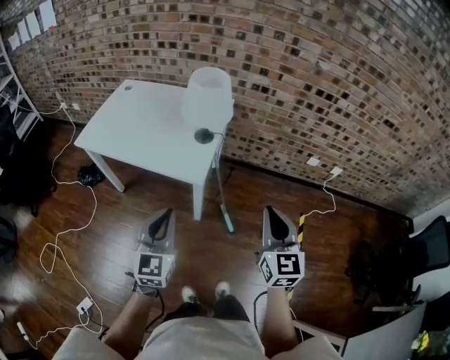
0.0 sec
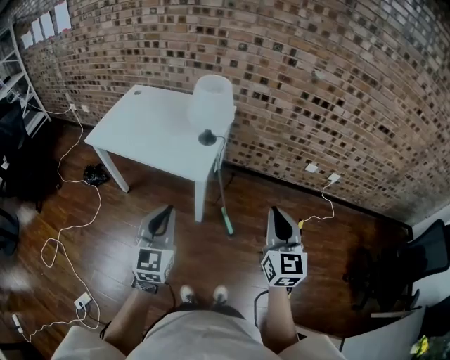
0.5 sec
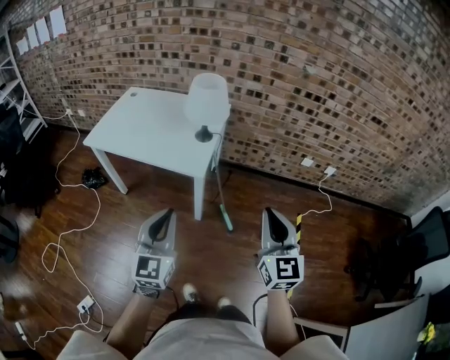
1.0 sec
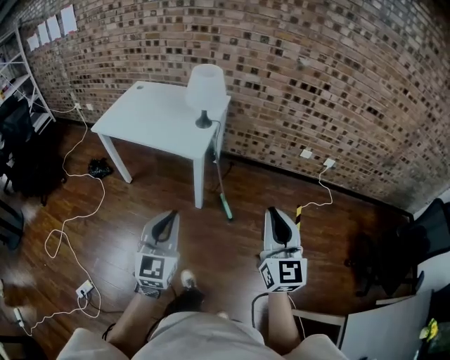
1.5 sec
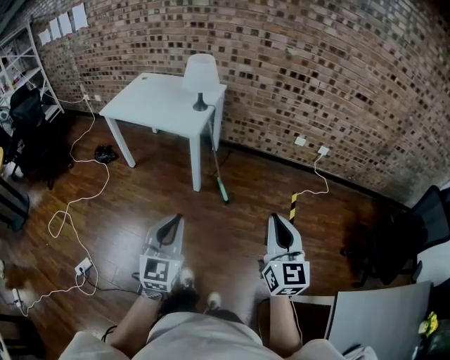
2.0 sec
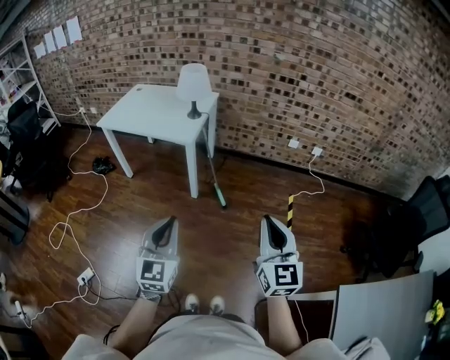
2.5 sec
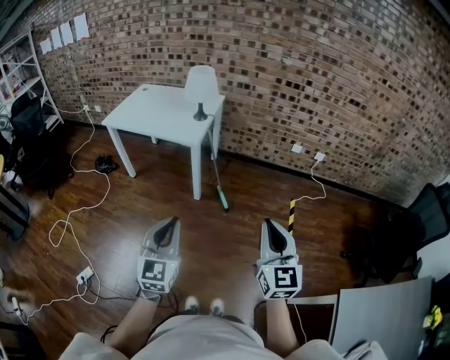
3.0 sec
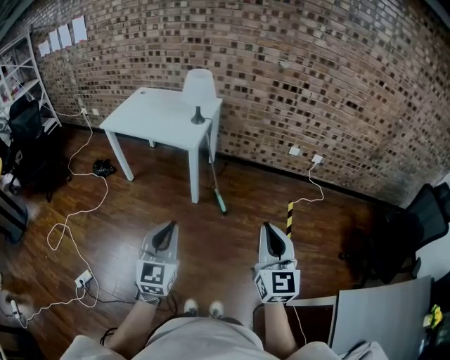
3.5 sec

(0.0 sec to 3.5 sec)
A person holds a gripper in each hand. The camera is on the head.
0.0 sec - 2.0 sec: Both grippers travel together backward, roughly 40 cm.
2.0 sec - 3.5 sec: The right gripper changes place by some 5 cm.

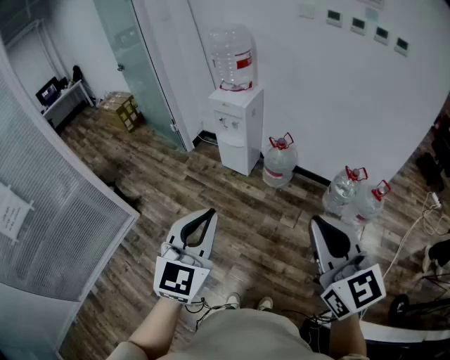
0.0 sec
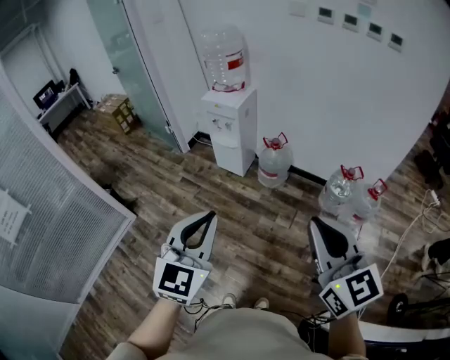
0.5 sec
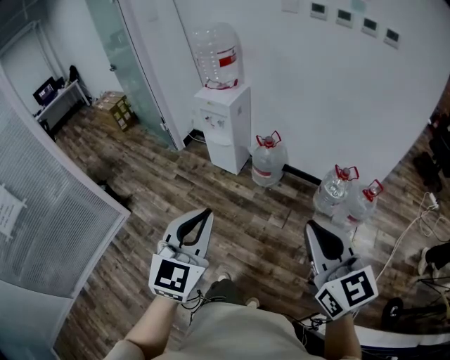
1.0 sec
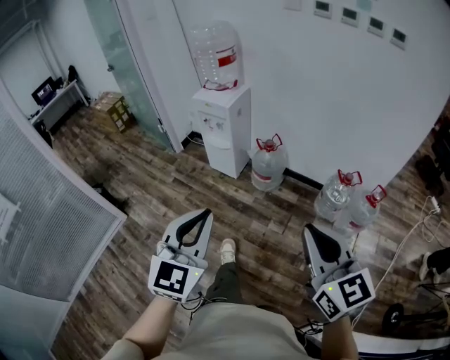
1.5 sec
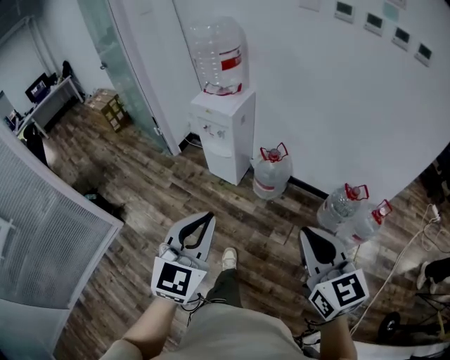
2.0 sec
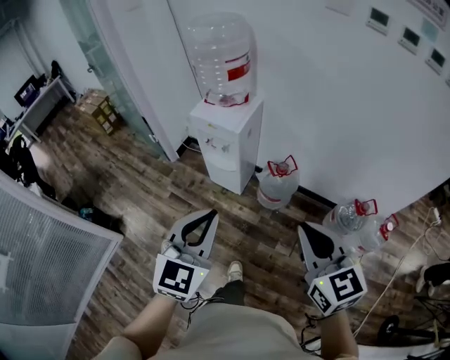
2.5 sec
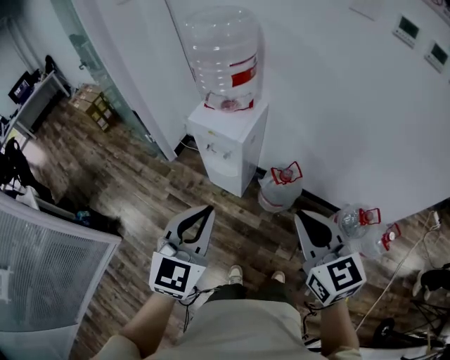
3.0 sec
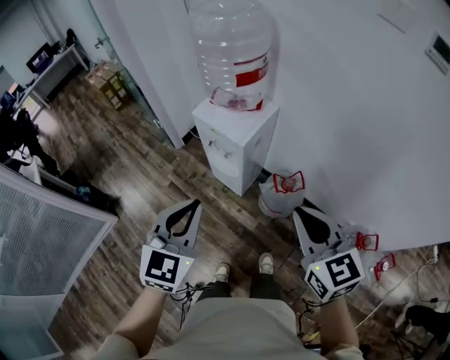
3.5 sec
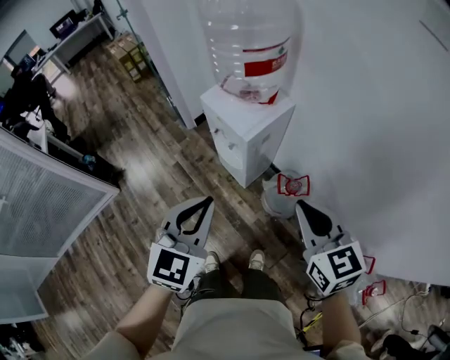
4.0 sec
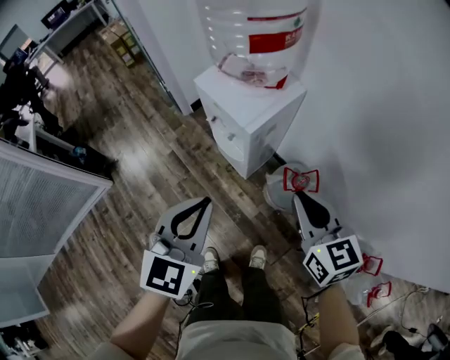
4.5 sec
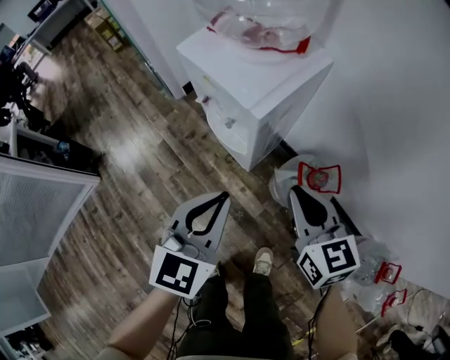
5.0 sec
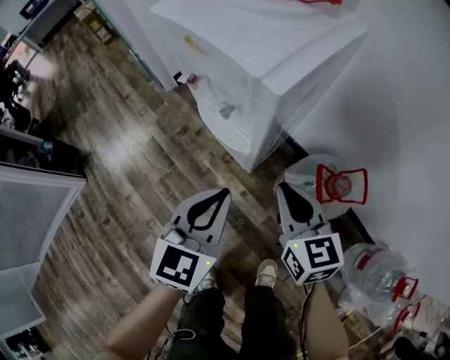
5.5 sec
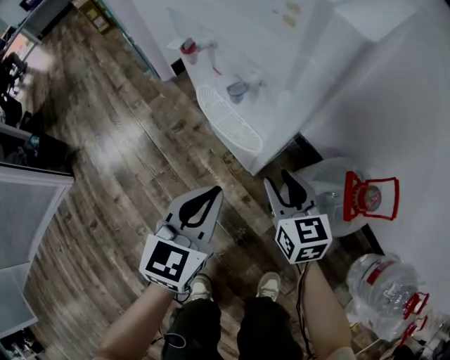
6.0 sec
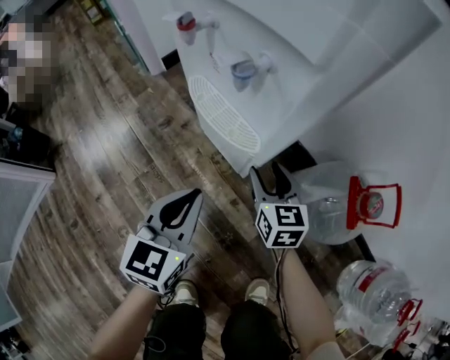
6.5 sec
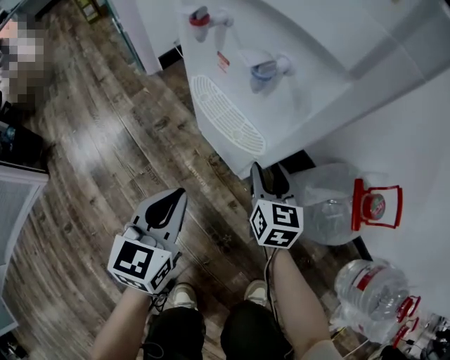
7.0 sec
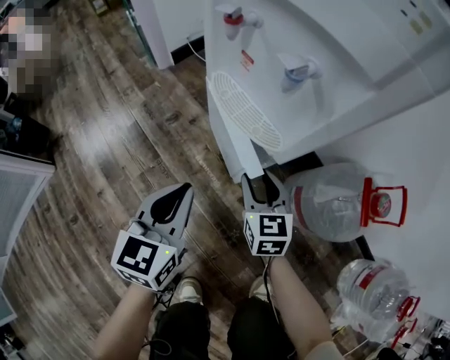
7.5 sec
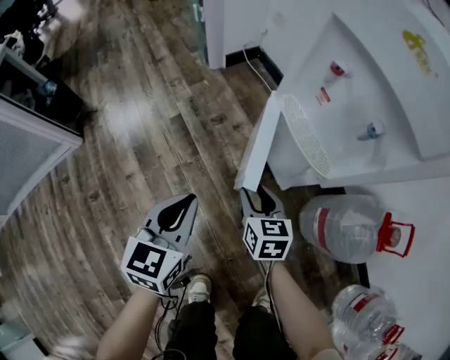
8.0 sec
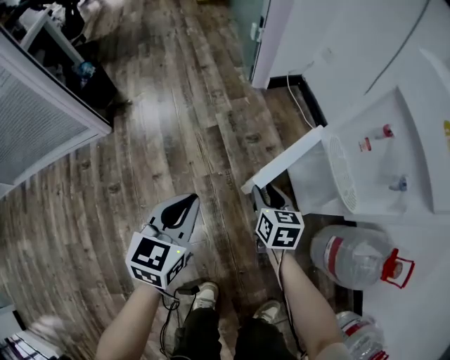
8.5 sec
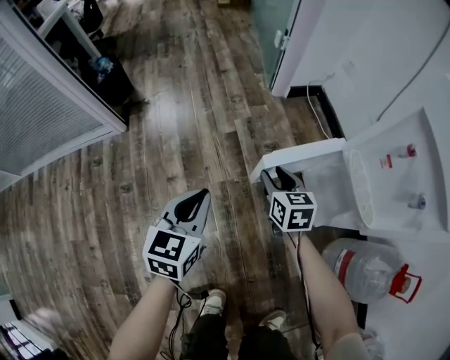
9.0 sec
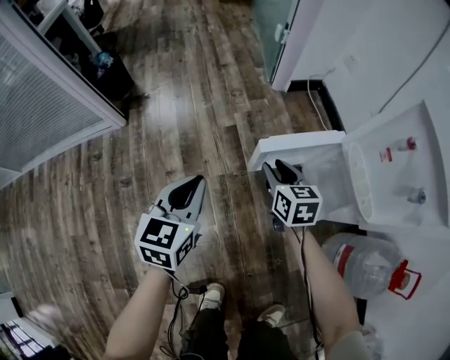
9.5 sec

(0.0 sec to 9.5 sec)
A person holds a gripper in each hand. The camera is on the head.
0.0 sec - 2.0 sec: The left gripper travels forward by approximately 20 cm. The right gripper heads forward and downward, covering approximately 20 cm.
2.0 sec - 4.0 sec: The two grippers go about 40 cm forward. The right gripper rotates roughly 20 degrees.
4.0 sec - 5.5 sec: The grippers both shift downward by roughly 40 cm.
5.5 sec - 7.5 sec: The two grippers go some 25 cm downward and to the left. The right gripper opens its fingers.
7.5 sec - 9.5 sec: The left gripper moves approximately 30 cm, and changes its angle by about 30 degrees. The right gripper changes place by roughly 30 cm, and changes its angle by some 30 degrees.

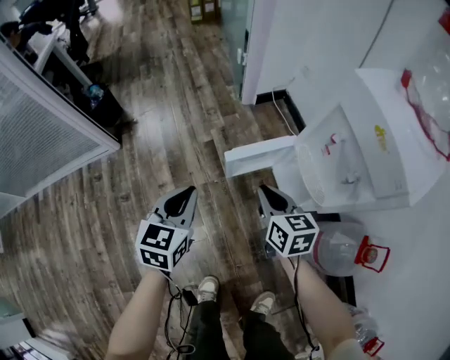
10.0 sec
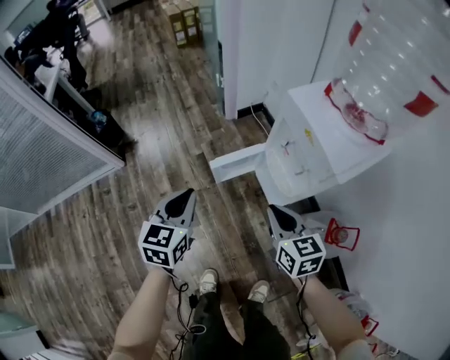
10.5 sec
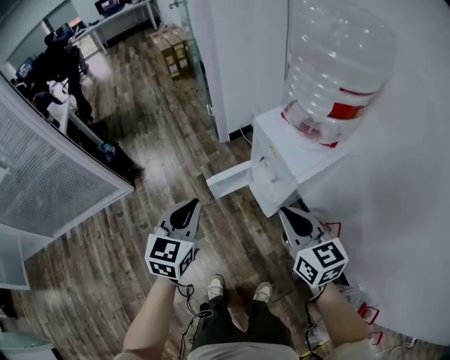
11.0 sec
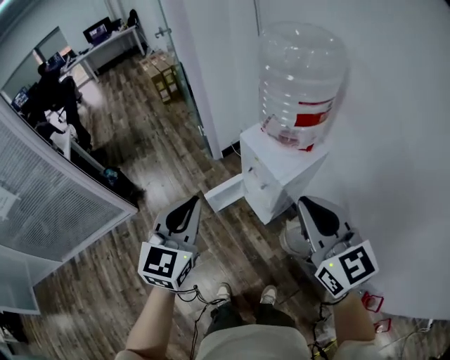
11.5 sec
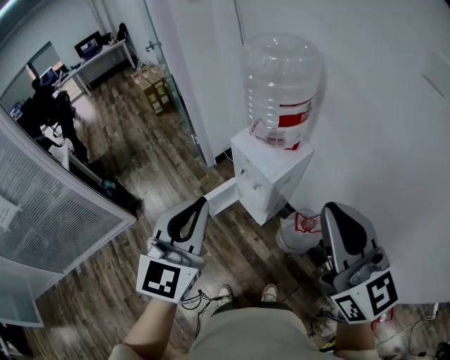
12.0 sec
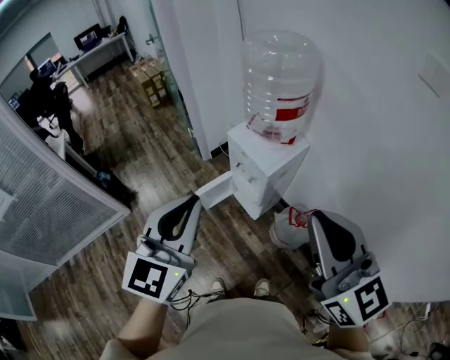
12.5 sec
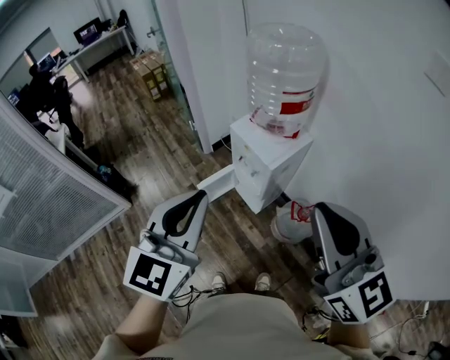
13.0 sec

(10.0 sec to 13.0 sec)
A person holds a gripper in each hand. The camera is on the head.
10.0 sec - 11.5 sec: Both grippers move upward, roughly 50 cm. The right gripper changes its angle by roughly 30 degrees; the left gripper swivels some 30 degrees.
11.5 sec - 13.0 sec: The right gripper shifts roughly 15 cm backward and upward. Meanwhile the left gripper shifts approximately 15 cm upward and backward.

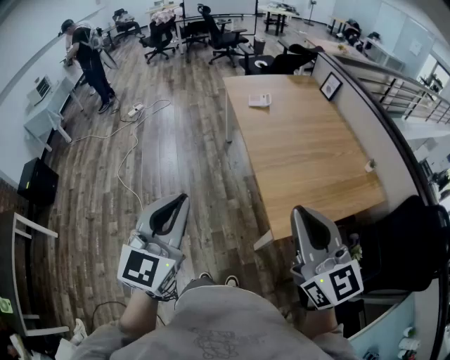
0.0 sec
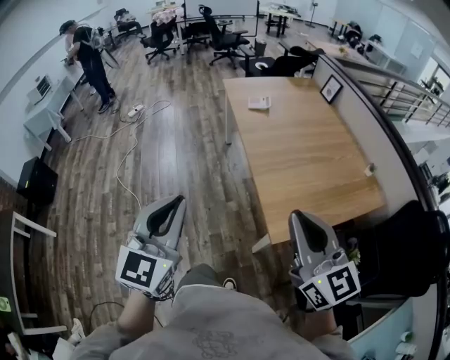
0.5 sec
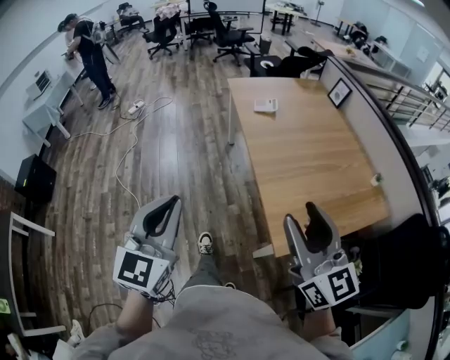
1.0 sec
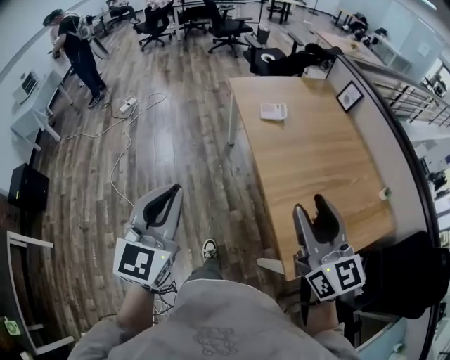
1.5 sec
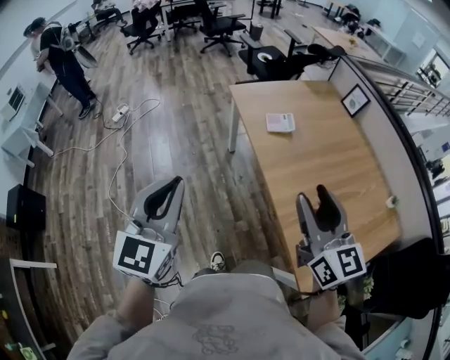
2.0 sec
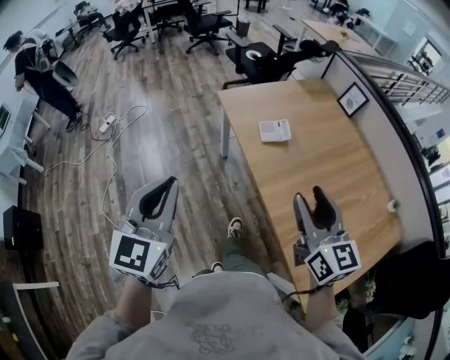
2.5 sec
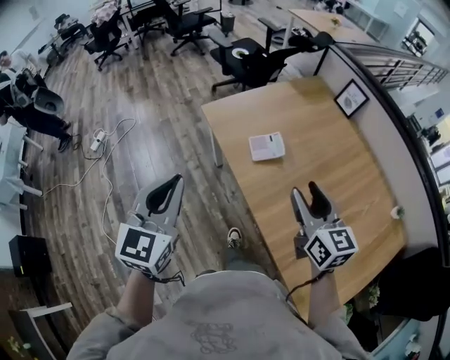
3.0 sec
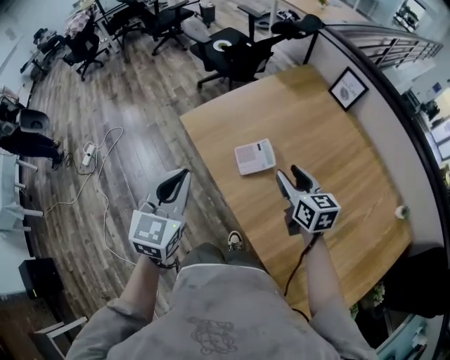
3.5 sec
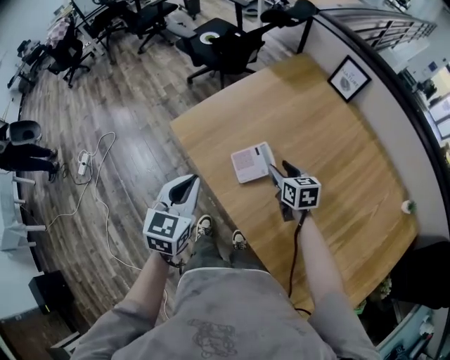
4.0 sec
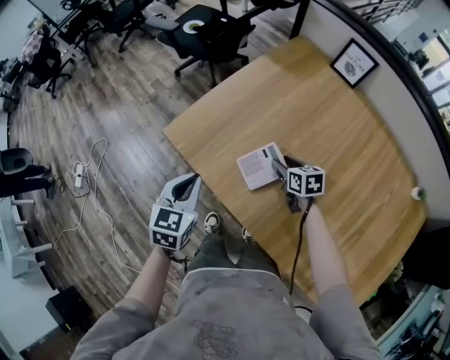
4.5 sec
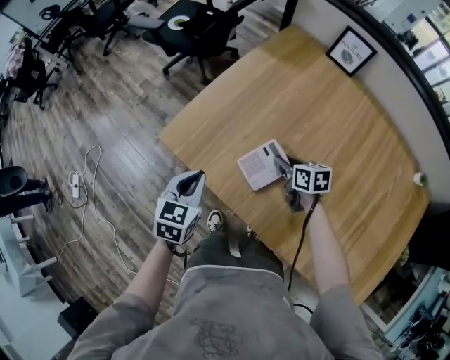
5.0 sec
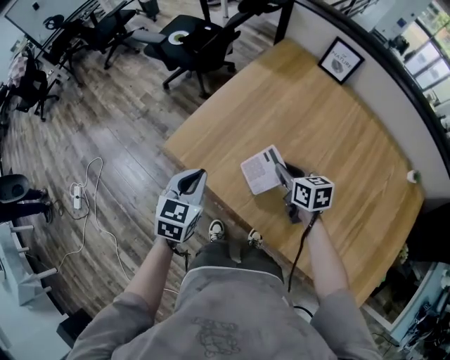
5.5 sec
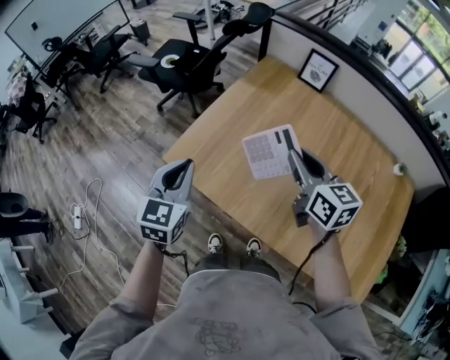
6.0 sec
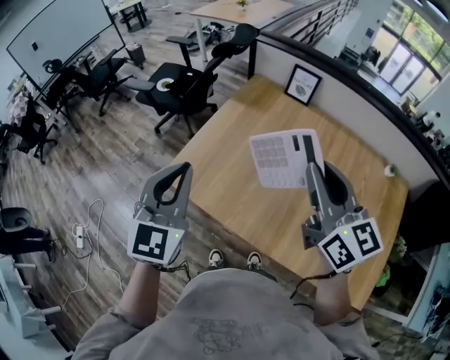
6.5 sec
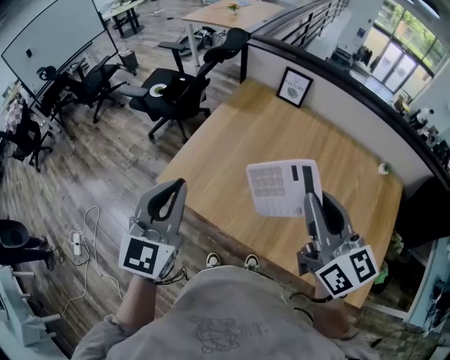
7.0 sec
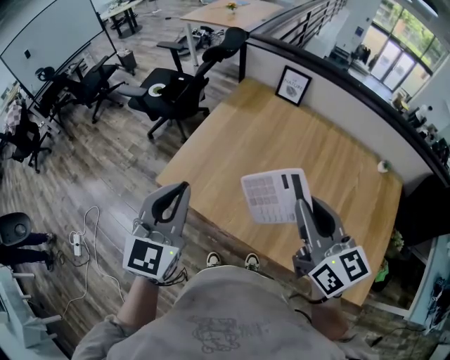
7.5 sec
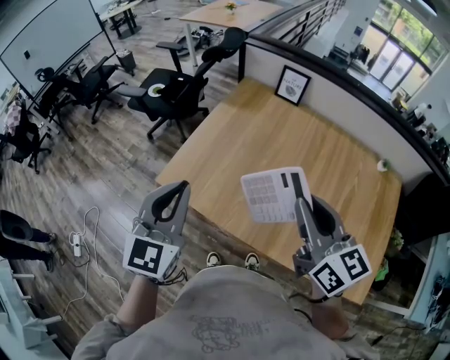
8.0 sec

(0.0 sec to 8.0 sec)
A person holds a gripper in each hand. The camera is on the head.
0.0 sec - 2.0 sec: Both grippers are carried forward, roughly 40 cm. The right gripper opens.
2.0 sec - 4.0 sec: The pair of grippers is taken forward, approximately 50 cm. The right gripper heads downward, covering roughly 30 cm, and tilts its fingers about 40 degrees downward. The left gripper swivels some 30 degrees.
4.0 sec - 6.0 sec: The right gripper moves upward, roughly 25 cm, changes its angle by some 30 degrees, and closes its fingers. Meanwhile the left gripper travels forward and upward by approximately 15 cm.
6.0 sec - 8.0 sec: The right gripper goes approximately 20 cm backward and upward. The left gripper shifts some 15 cm upward and backward.

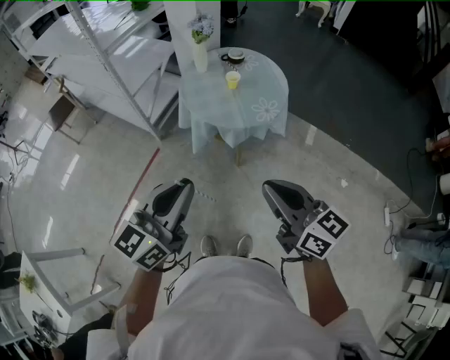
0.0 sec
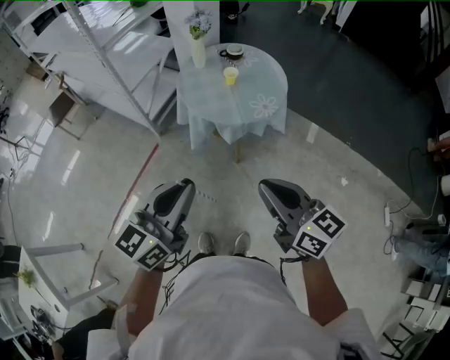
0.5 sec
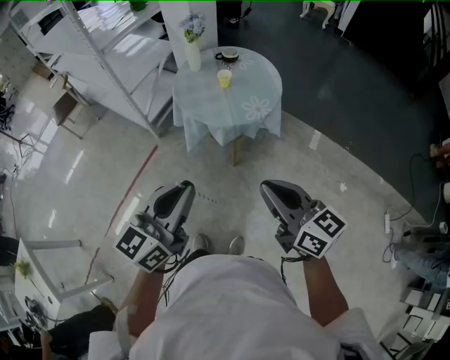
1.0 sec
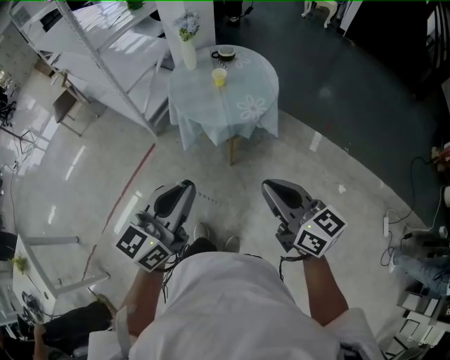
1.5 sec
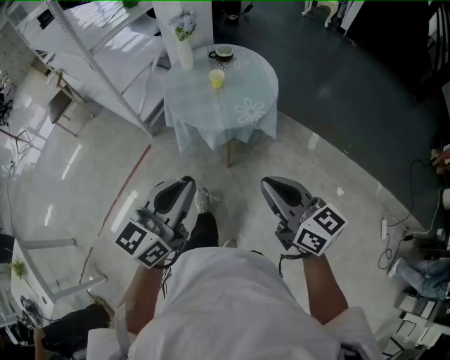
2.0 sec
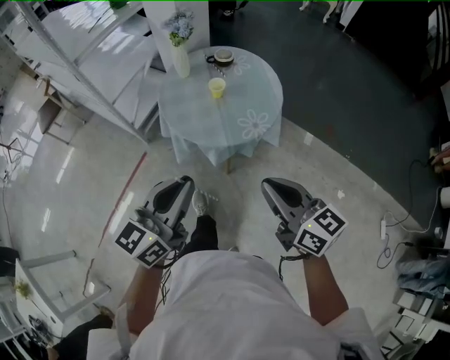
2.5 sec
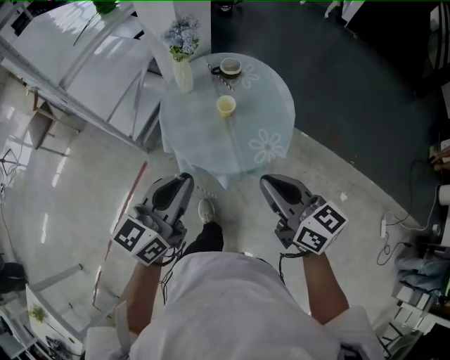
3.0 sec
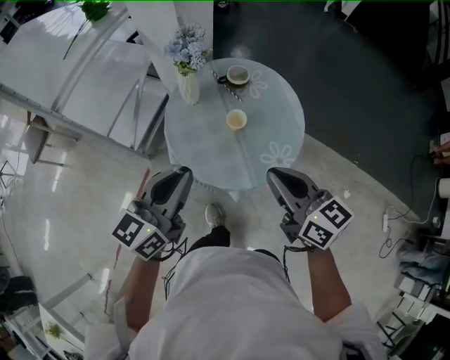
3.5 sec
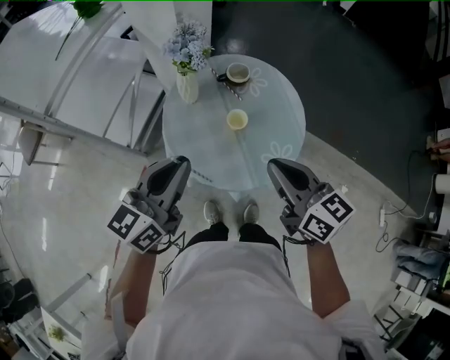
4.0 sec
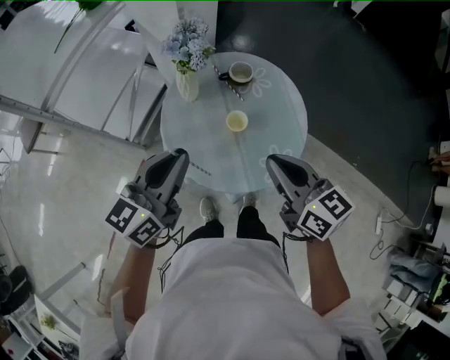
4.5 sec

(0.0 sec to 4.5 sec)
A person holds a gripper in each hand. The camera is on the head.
0.0 sec - 2.0 sec: Both grippers travel together to the right, roughly 10 cm.
2.0 sec - 4.5 sec: The pair of grippers is taken forward, approximately 40 cm.
